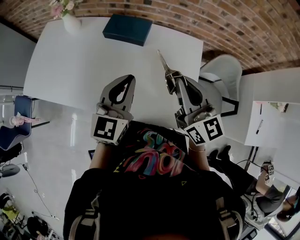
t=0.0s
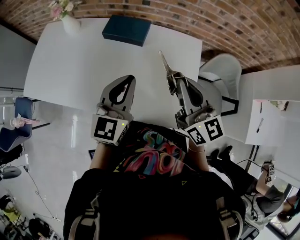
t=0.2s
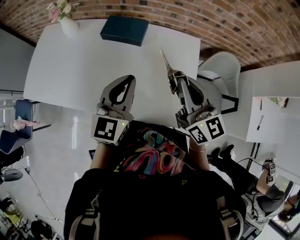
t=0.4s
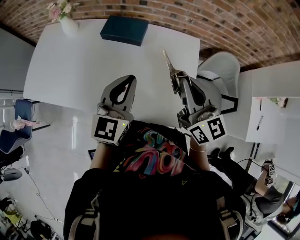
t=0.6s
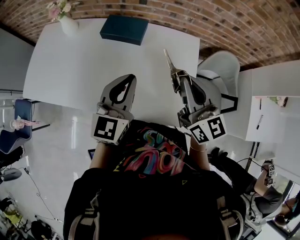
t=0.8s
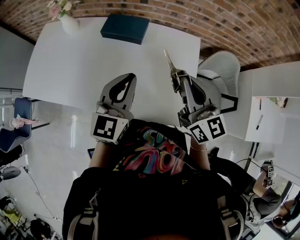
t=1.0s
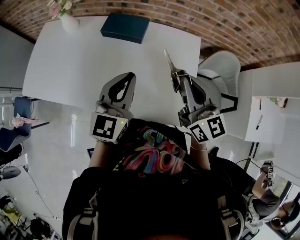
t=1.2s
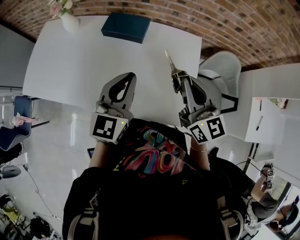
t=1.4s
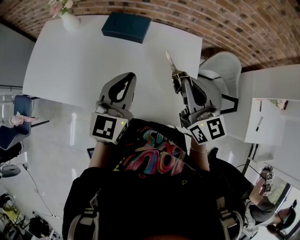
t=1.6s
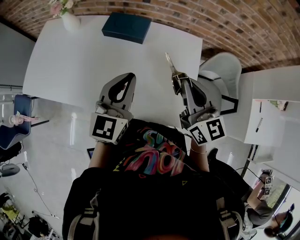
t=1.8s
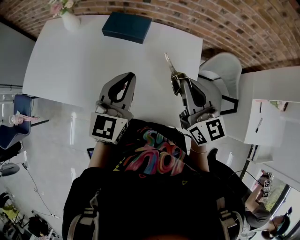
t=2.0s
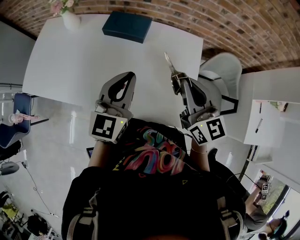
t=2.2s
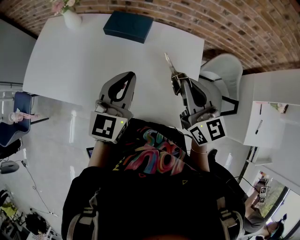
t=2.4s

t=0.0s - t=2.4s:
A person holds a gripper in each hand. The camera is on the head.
t=0.0s - t=1.2s: The grippers make only small movements.
t=1.2s - t=2.4s: Both grippers stay about where they are.

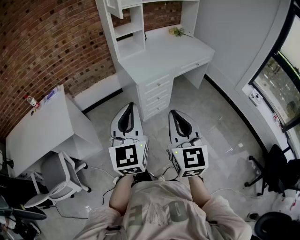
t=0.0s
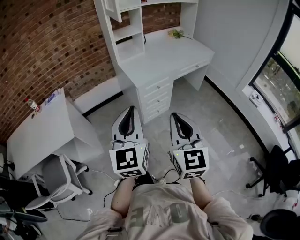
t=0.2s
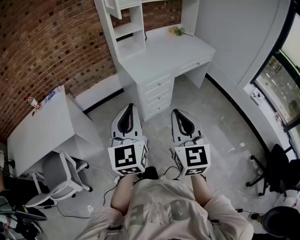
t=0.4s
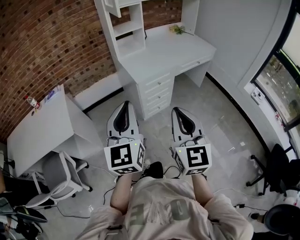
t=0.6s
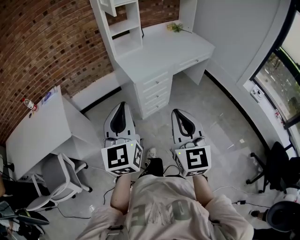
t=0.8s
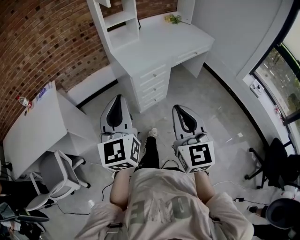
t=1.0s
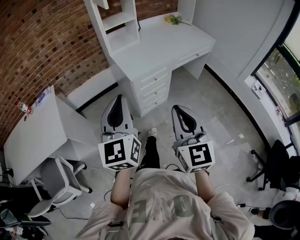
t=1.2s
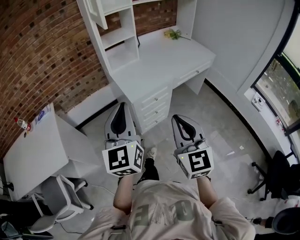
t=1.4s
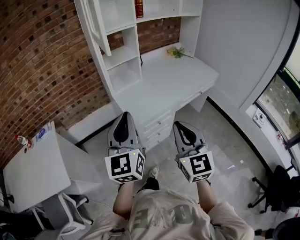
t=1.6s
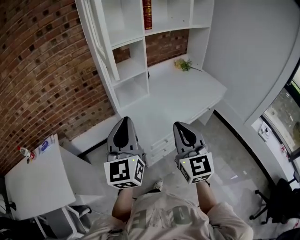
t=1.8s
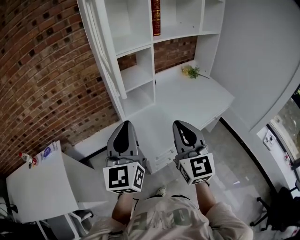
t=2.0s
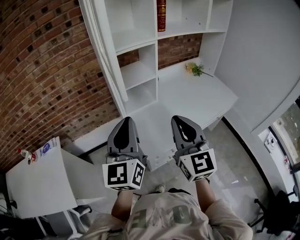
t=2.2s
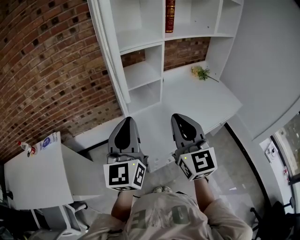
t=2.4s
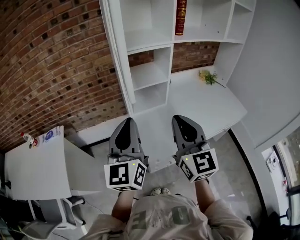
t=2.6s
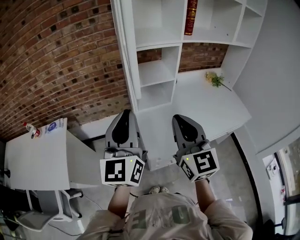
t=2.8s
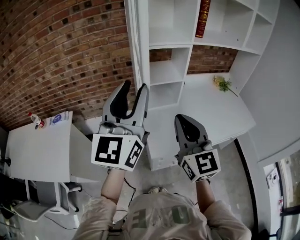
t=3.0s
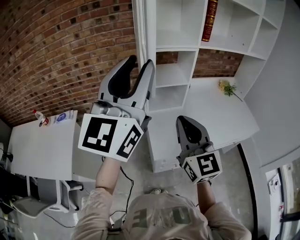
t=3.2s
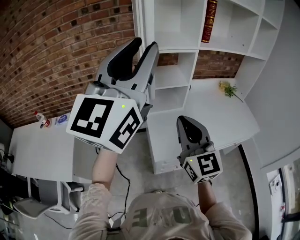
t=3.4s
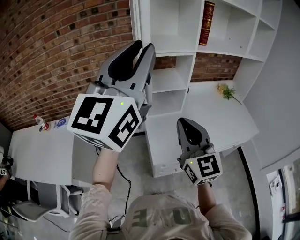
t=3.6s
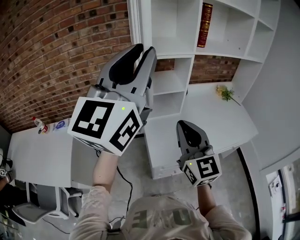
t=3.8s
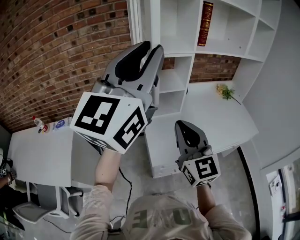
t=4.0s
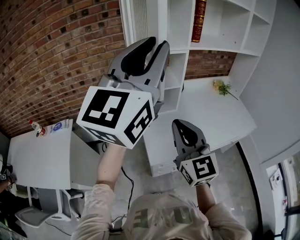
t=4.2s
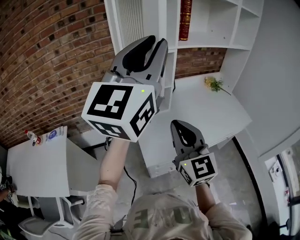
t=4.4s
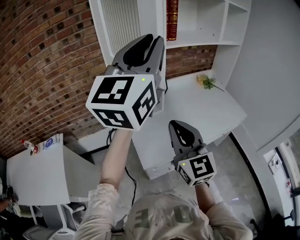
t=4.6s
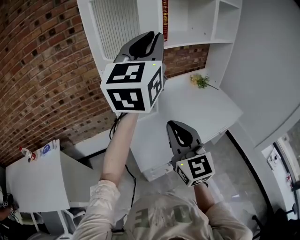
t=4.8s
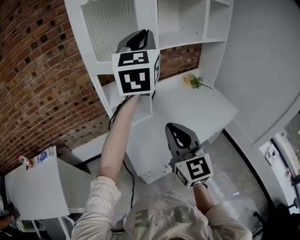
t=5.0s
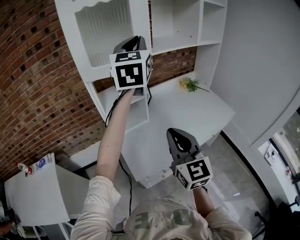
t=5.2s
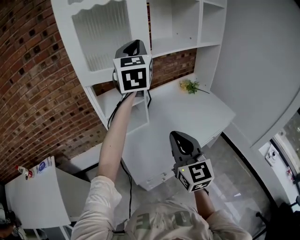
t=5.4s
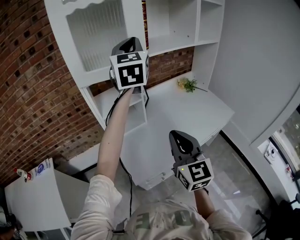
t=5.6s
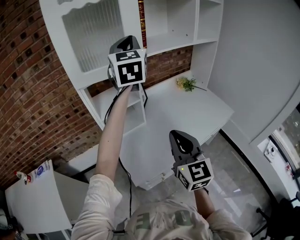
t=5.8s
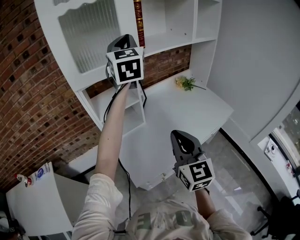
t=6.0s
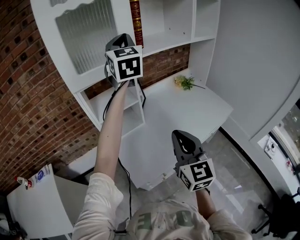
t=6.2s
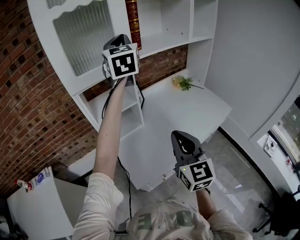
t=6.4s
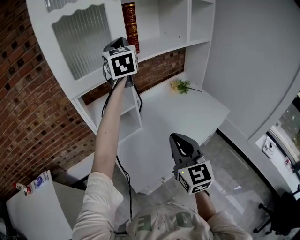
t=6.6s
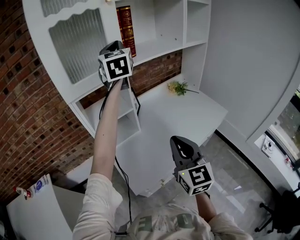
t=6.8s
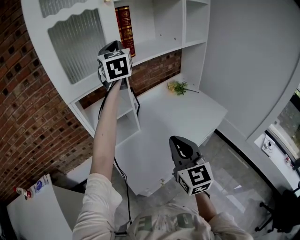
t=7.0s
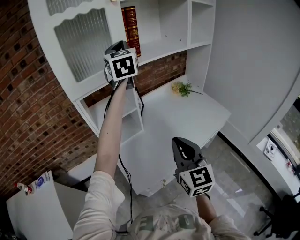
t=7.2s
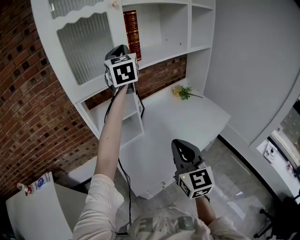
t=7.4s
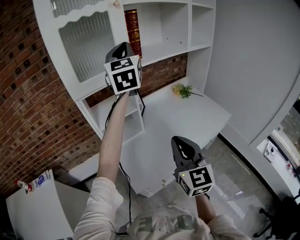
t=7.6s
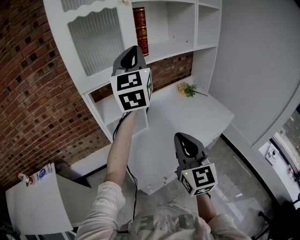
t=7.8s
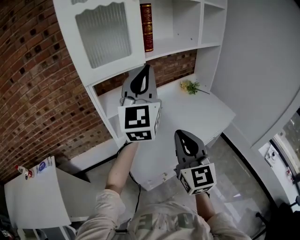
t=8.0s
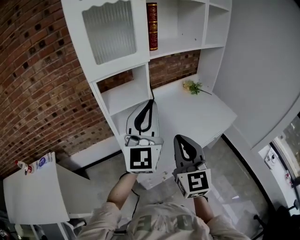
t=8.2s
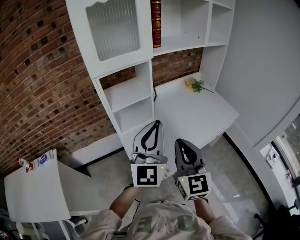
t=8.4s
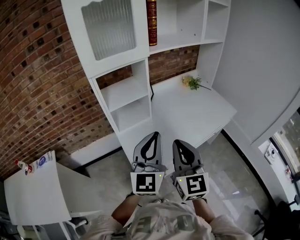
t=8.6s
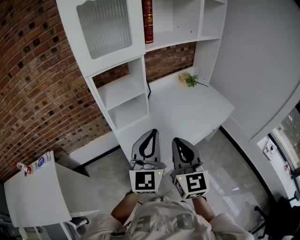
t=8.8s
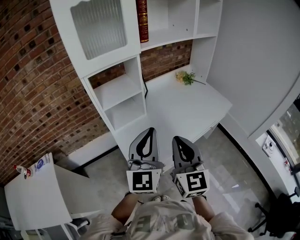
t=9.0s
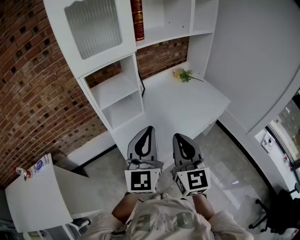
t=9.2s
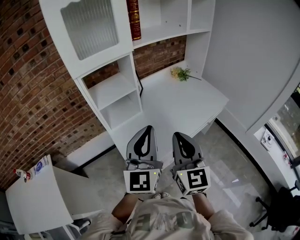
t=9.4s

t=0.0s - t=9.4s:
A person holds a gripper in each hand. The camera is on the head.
t=0.0s - t=1.6s: The two grippers go some 25 cm forward.
t=1.6s - t=3.2s: The right gripper is displaced forward by roughly 25 cm, and changes its angle by approximately 30 degrees. Meanwhile the left gripper moves upward and forward, some 30 cm, and opens up.
t=3.2s - t=4.8s: The right gripper travels to the right by roughly 5 cm. Meanwhile the left gripper shifts some 20 cm to the right and forward.
t=4.8s - t=6.2s: The right gripper travels to the right and forward by about 10 cm; the left gripper is displaced forward by approximately 20 cm, and turns by about 20 degrees.
t=6.2s - t=7.8s: The left gripper moves backward, approximately 10 cm.
t=7.8s - t=9.4s: The right gripper goes roughly 5 cm backward; the left gripper moves downward and backward, about 30 cm.

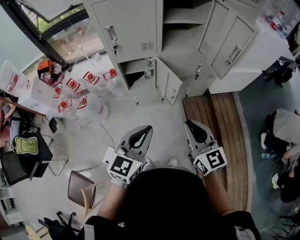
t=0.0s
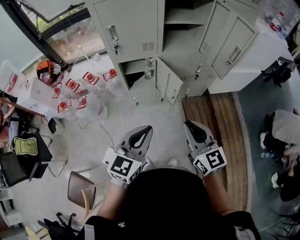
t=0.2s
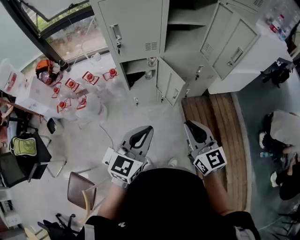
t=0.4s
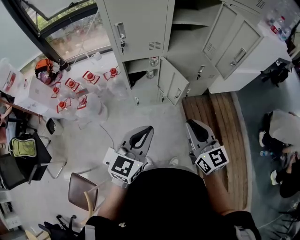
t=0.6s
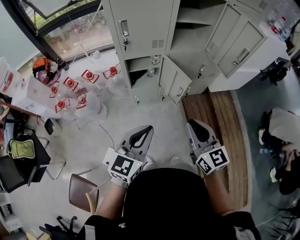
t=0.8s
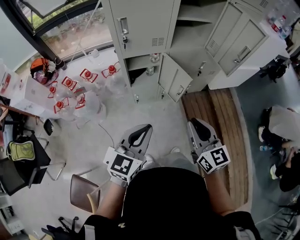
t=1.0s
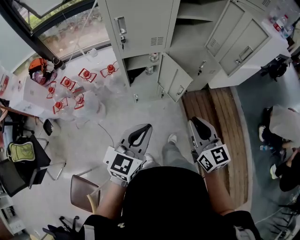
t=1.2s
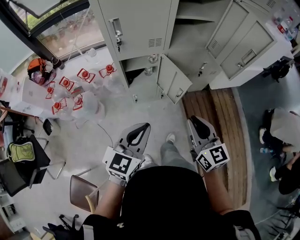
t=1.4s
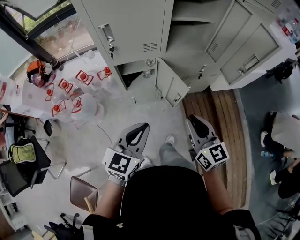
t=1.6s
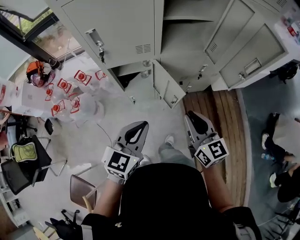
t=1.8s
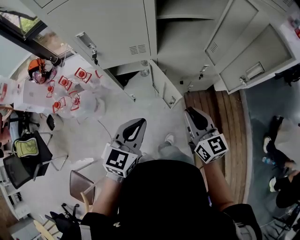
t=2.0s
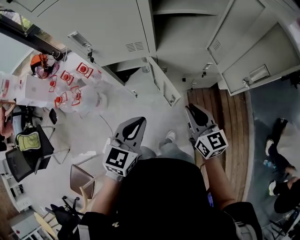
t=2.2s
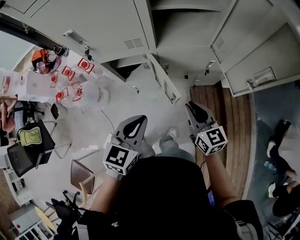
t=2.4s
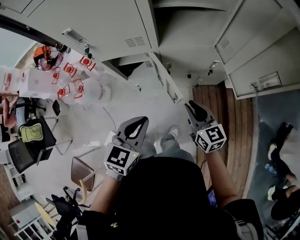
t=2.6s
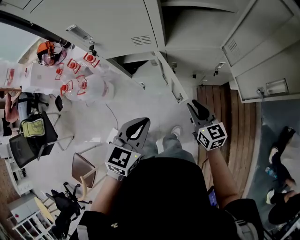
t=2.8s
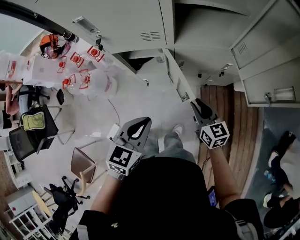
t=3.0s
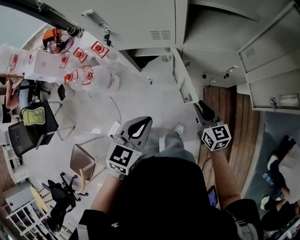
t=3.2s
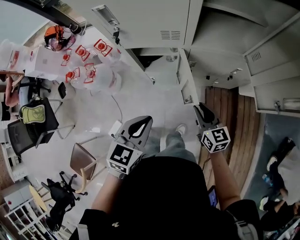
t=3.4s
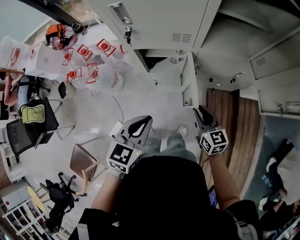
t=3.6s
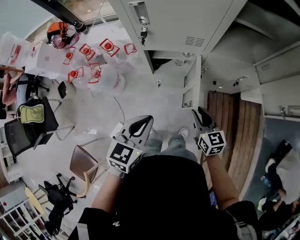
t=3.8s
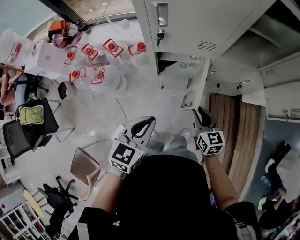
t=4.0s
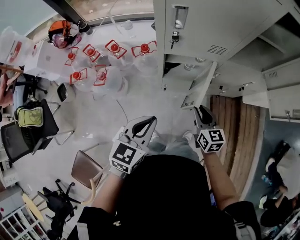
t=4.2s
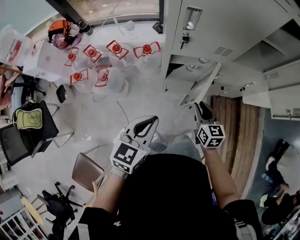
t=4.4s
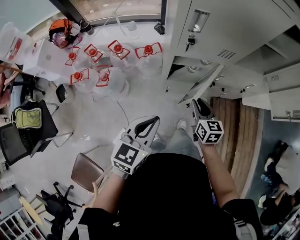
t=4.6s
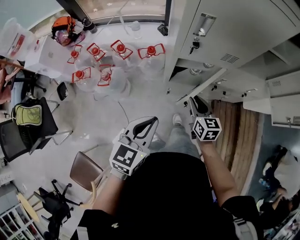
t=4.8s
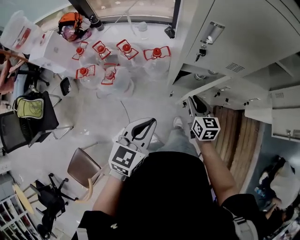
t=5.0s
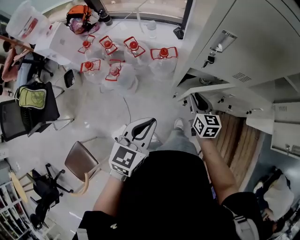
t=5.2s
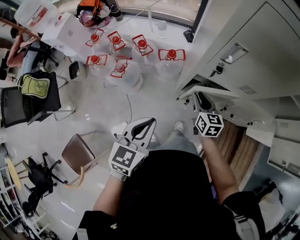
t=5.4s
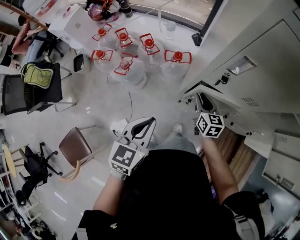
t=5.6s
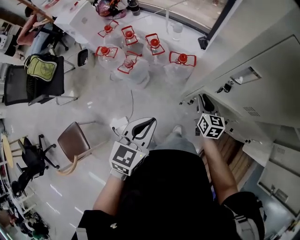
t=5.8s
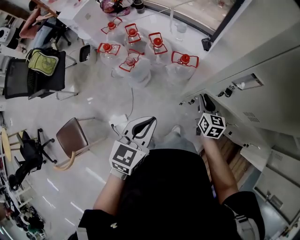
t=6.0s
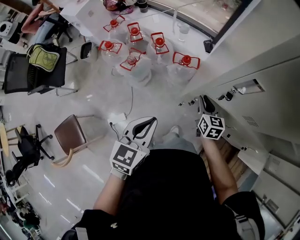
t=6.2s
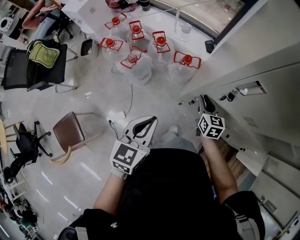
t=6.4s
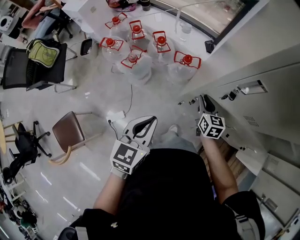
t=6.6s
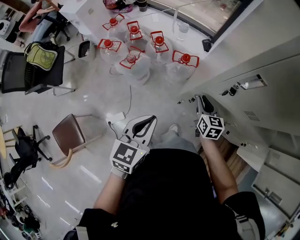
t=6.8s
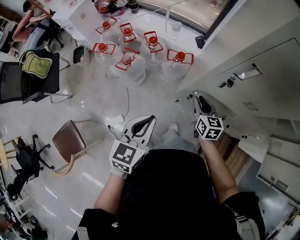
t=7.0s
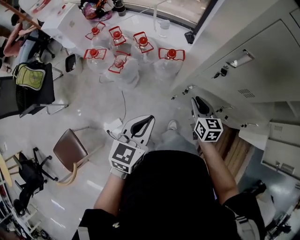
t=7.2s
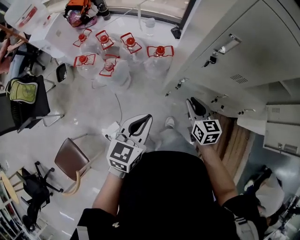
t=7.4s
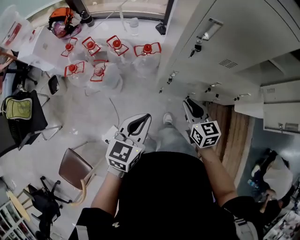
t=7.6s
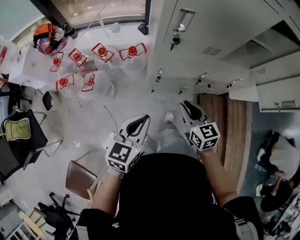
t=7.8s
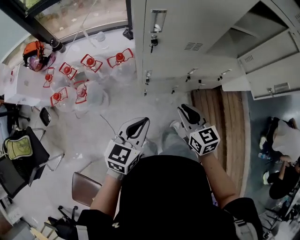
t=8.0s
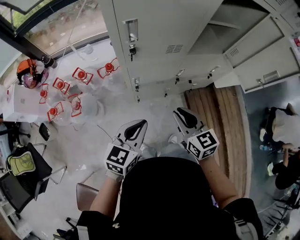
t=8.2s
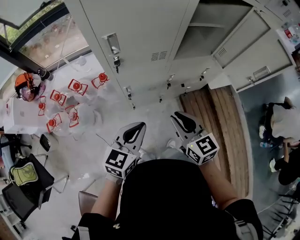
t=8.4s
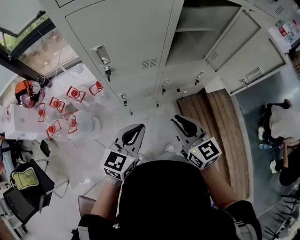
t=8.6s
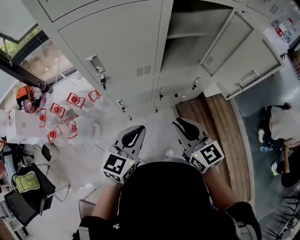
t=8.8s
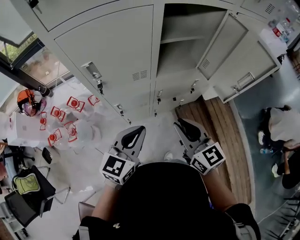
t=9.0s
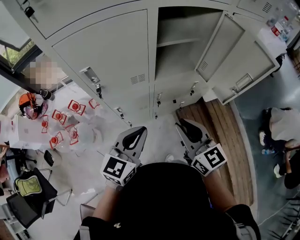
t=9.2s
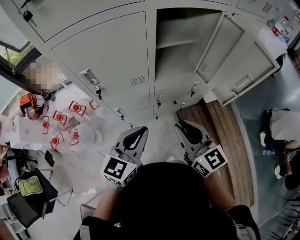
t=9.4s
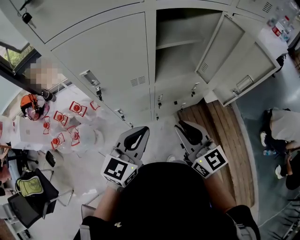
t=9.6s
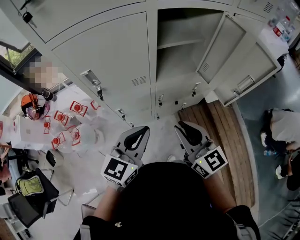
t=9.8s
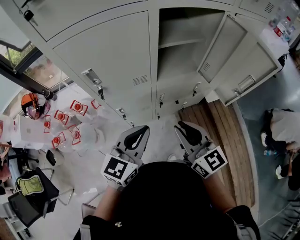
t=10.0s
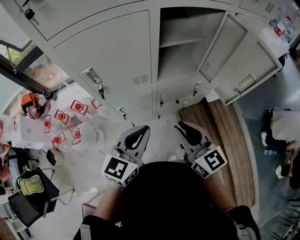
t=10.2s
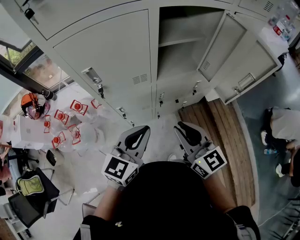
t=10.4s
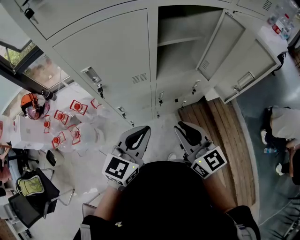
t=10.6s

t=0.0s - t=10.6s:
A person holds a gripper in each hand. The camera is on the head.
t=0.0s - t=1.6s: The right gripper moves forward, roughly 10 cm; the left gripper goes some 10 cm forward and to the left.
t=1.6s - t=3.0s: The right gripper heads downward and forward, covering about 25 cm. The left gripper shifts some 15 cm forward, downward and to the right.
t=3.0s - t=4.6s: The grippers both shift to the left by about 25 cm.
t=4.6s - t=6.0s: The left gripper changes place by roughly 10 cm, and swivels some 30 degrees, while the right gripper ends up roughly 20 cm from where it was, and turns by some 20 degrees.
t=6.0s - t=7.6s: The left gripper is displaced backward by about 5 cm, and swivels some 20 degrees, while the right gripper goes about 20 cm backward and upward.
t=7.6s - t=9.0s: The two grippers go some 25 cm to the right and upward. The left gripper swivels approximately 30 degrees. The right gripper swivels roughly 20 degrees.
t=9.0s - t=10.6s: The grippers stay close to where they were, moving slightly.

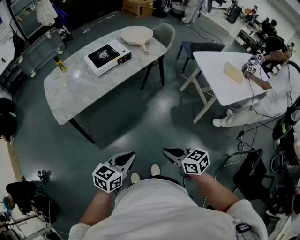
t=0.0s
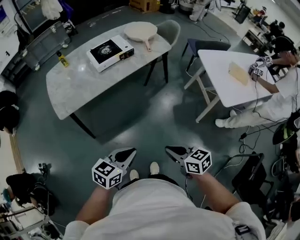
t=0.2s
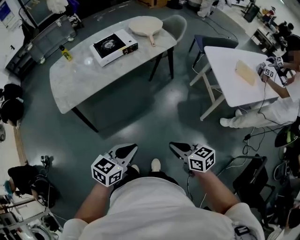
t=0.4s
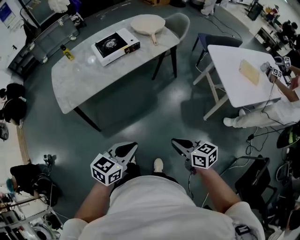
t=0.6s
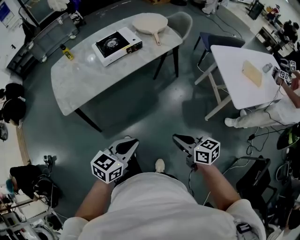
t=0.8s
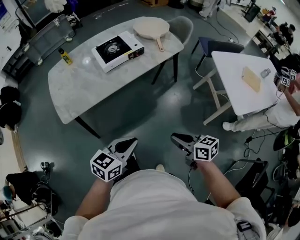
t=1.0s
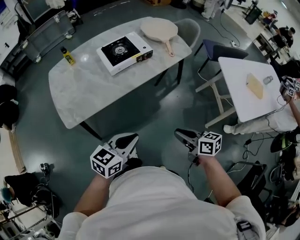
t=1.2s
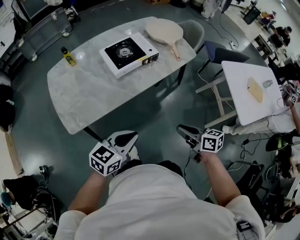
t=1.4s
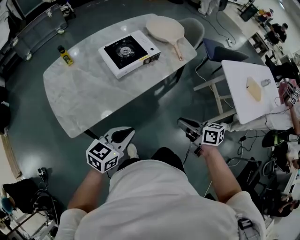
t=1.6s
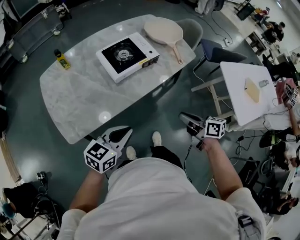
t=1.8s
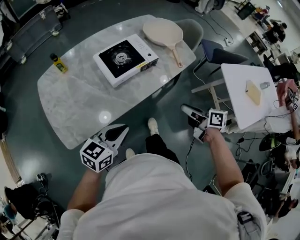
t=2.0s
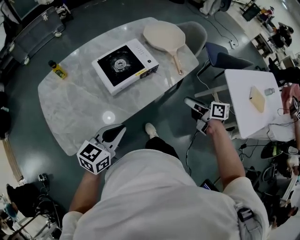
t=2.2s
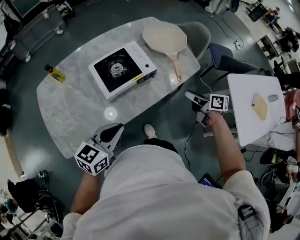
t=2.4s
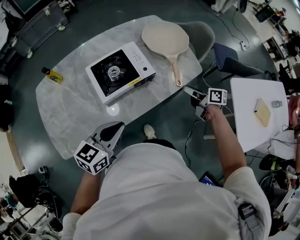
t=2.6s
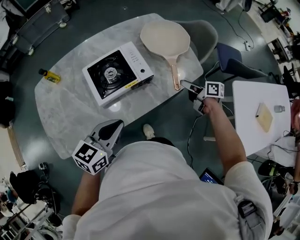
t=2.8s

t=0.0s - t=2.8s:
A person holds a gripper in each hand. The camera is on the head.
t=0.0s - t=1.4s: The left gripper moves forward and to the left, roughly 25 cm; the right gripper is displaced forward by about 25 cm.
t=1.4s - t=2.8s: The left gripper goes approximately 30 cm forward. Meanwhile the right gripper heads forward, covering roughly 50 cm, and opens.
